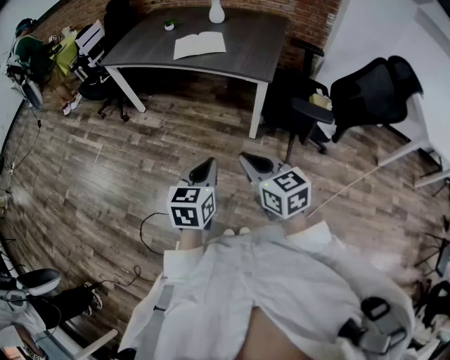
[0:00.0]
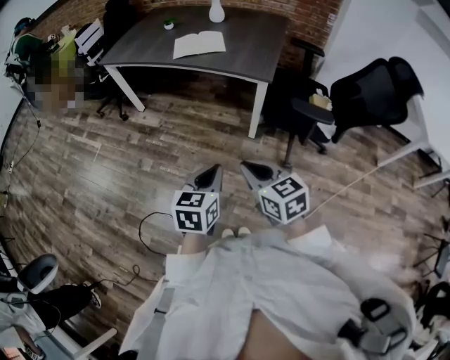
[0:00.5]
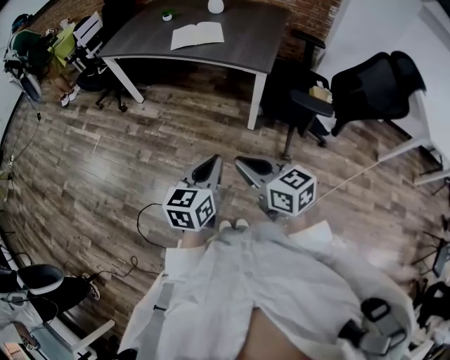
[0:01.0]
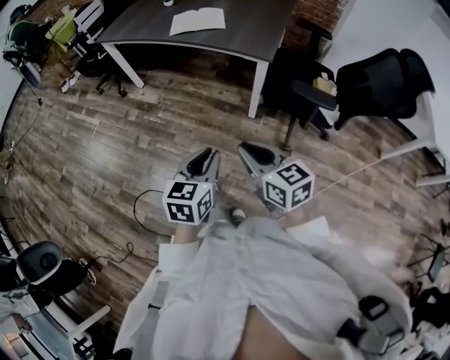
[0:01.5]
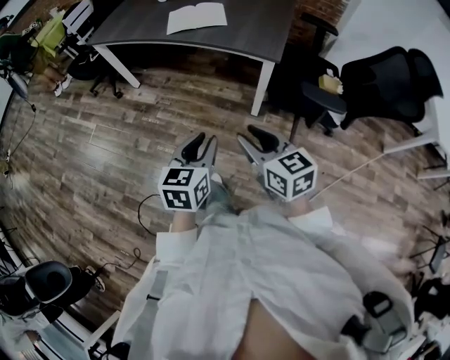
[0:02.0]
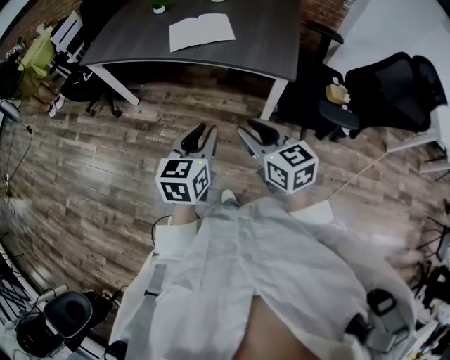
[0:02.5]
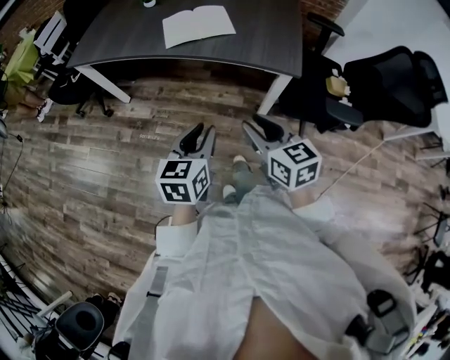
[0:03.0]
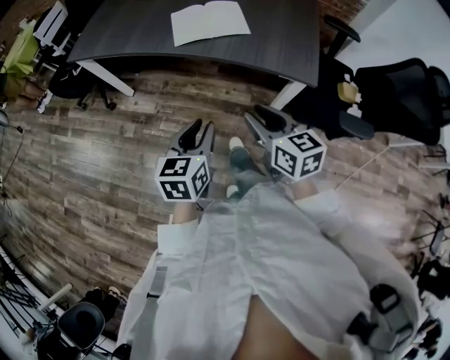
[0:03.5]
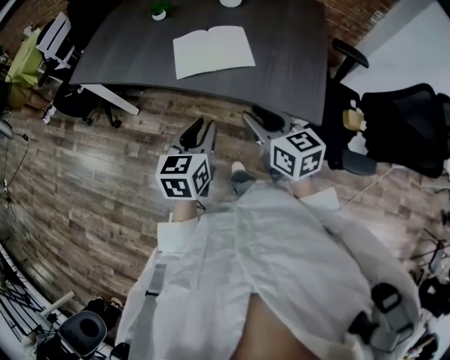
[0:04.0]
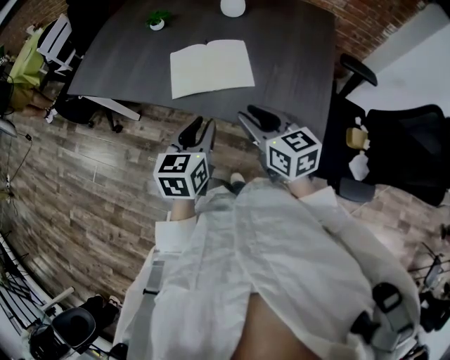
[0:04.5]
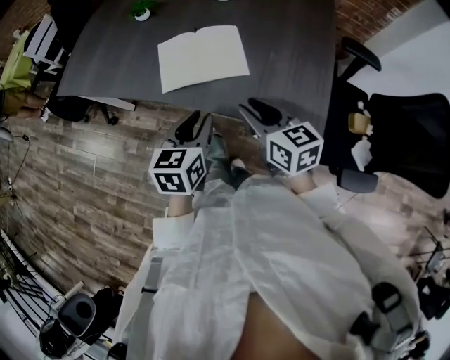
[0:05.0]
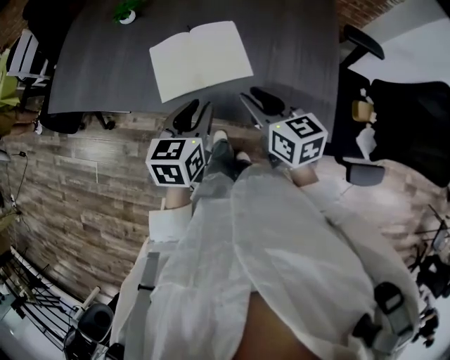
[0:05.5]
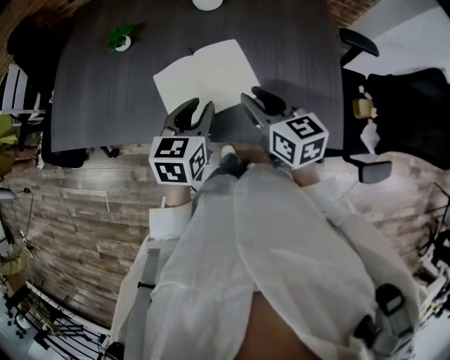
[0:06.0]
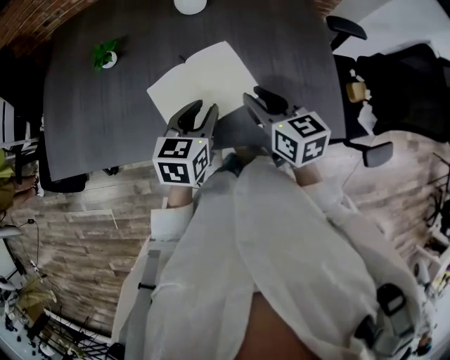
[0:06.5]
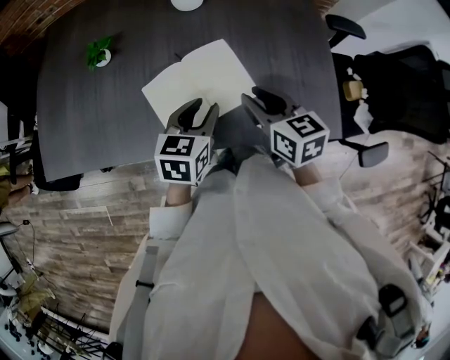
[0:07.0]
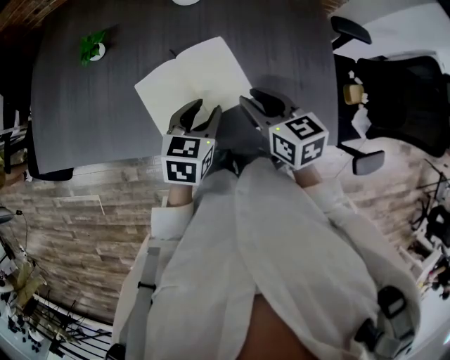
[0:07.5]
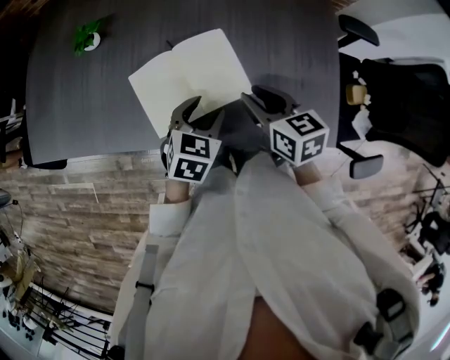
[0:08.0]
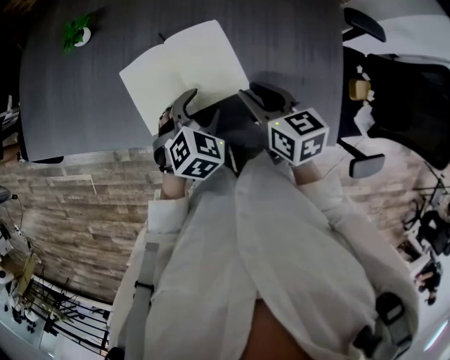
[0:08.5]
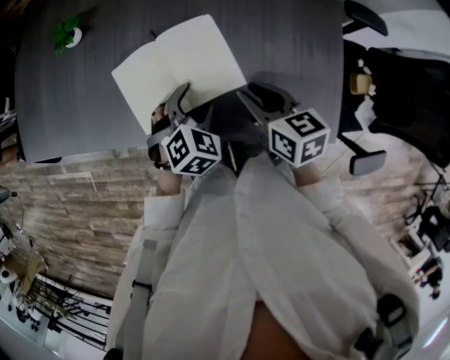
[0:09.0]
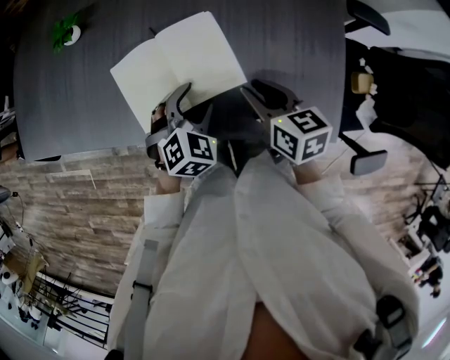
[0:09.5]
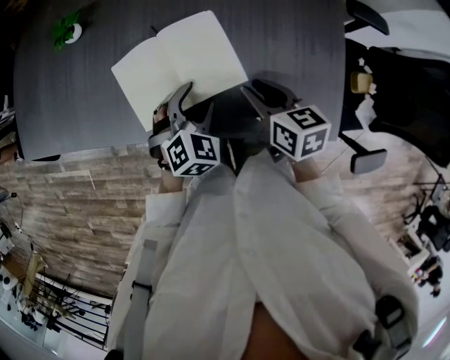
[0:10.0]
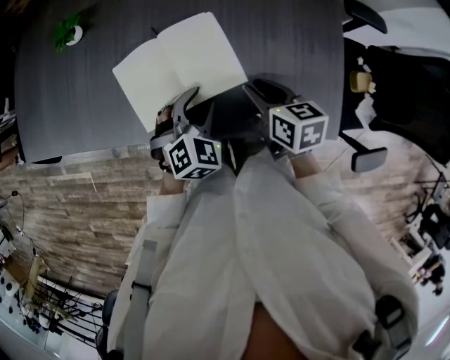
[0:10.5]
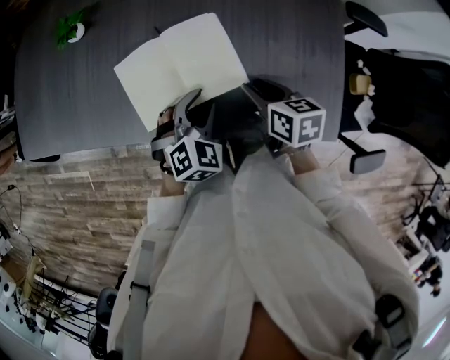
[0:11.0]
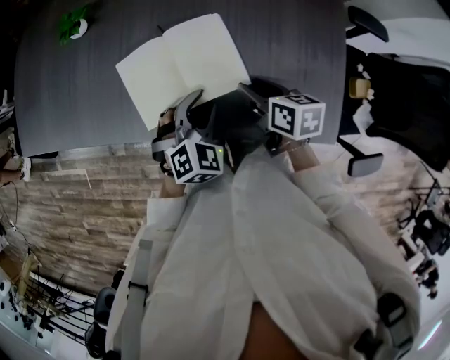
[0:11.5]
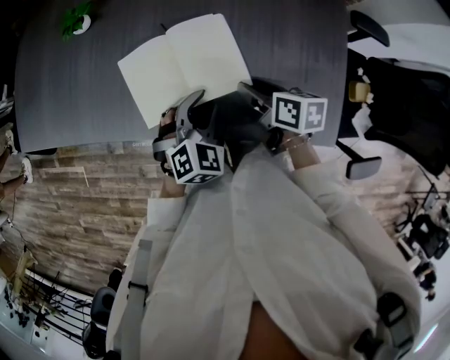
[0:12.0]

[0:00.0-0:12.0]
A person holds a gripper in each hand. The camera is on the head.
0:00.0 to 0:02.0: Both grippers travel together forward, roughly 10 cm. The right gripper opens.
0:02.0 to 0:04.0: Both grippers move forward, roughly 40 cm.
0:04.0 to 0:06.0: The two grippers go some 25 cm forward.
0:06.0 to 0:08.0: The right gripper travels downward by approximately 5 cm. The left gripper is displaced downward and to the right by about 10 cm, changes its angle by approximately 20 degrees, and opens up.
0:08.0 to 0:10.0: The left gripper swivels some 30 degrees.
0:10.0 to 0:12.0: The left gripper closes its fingers.

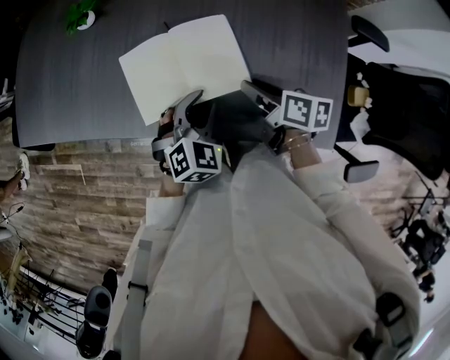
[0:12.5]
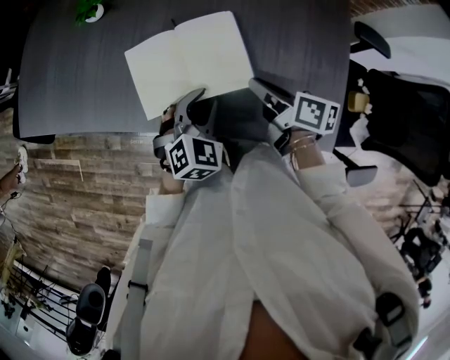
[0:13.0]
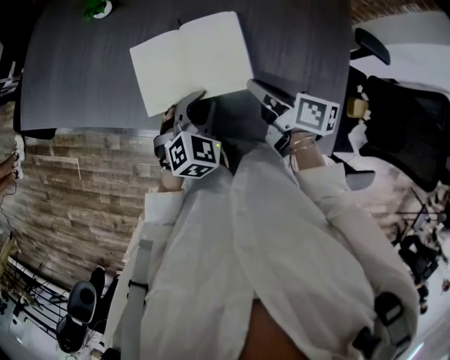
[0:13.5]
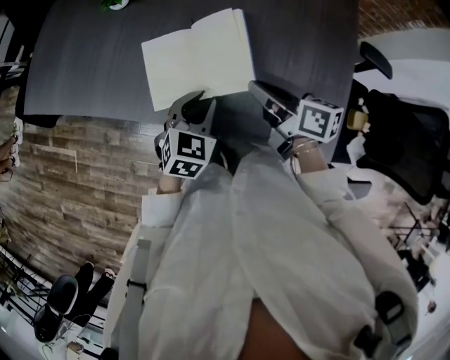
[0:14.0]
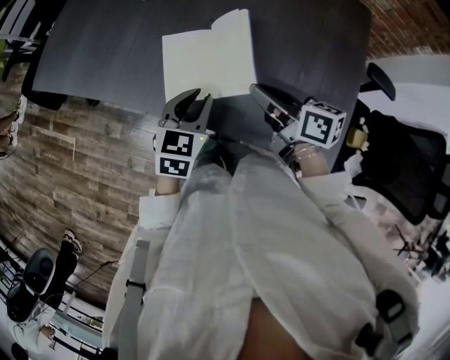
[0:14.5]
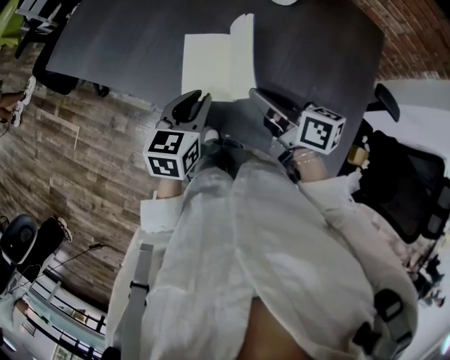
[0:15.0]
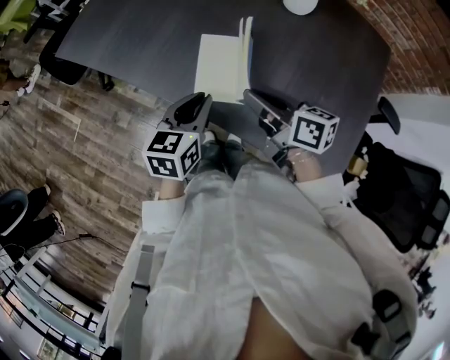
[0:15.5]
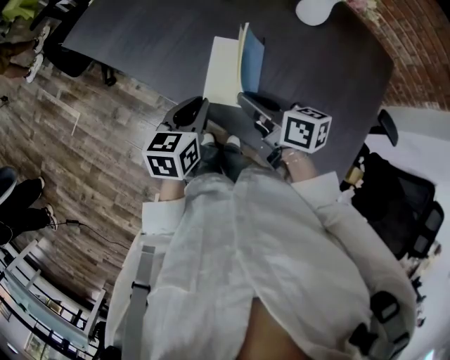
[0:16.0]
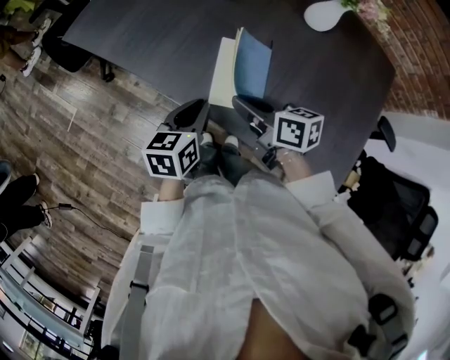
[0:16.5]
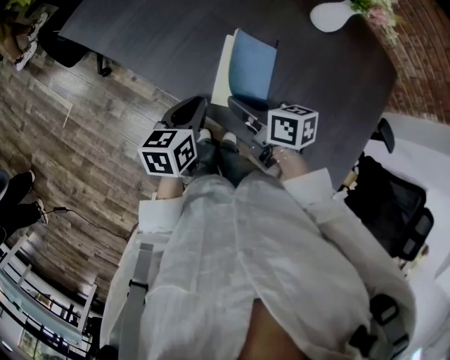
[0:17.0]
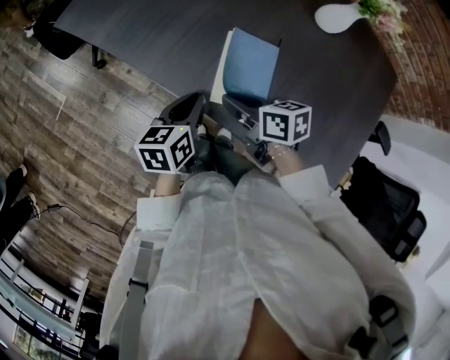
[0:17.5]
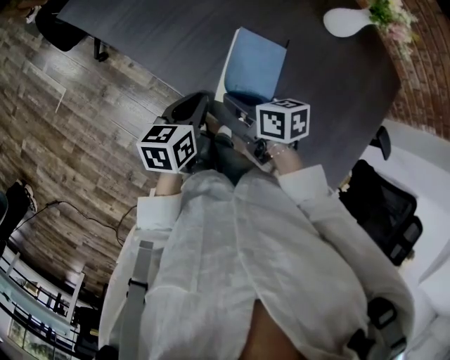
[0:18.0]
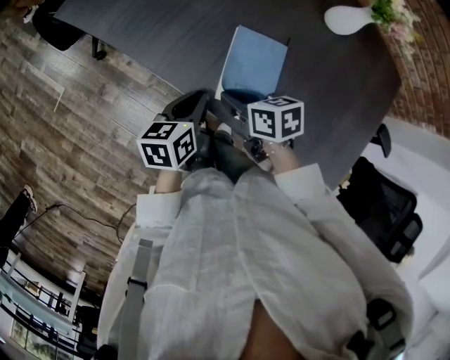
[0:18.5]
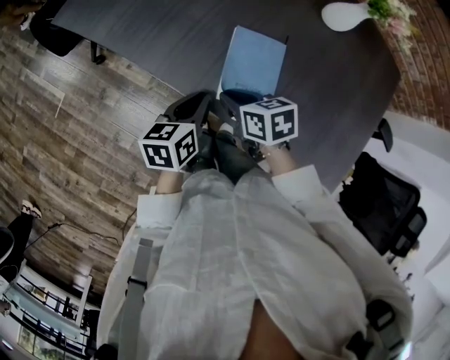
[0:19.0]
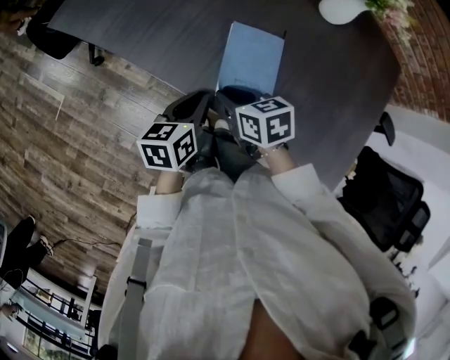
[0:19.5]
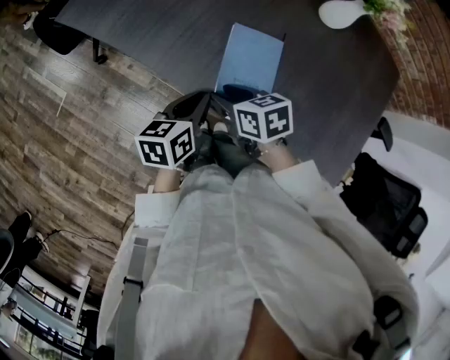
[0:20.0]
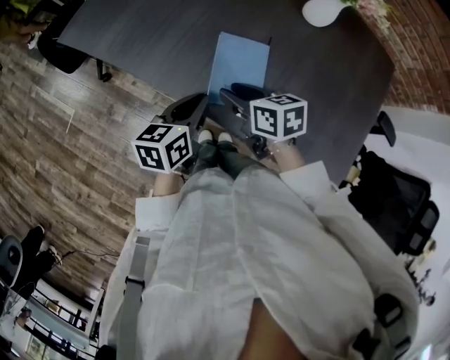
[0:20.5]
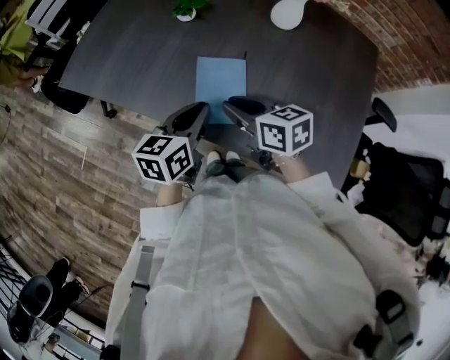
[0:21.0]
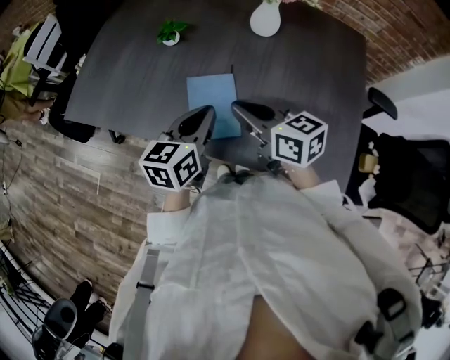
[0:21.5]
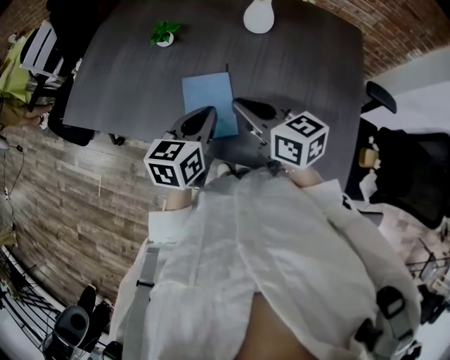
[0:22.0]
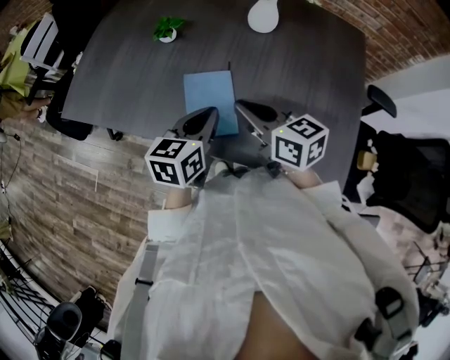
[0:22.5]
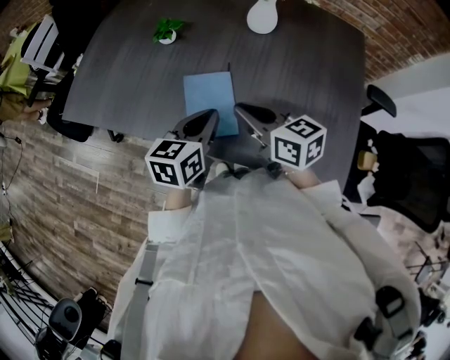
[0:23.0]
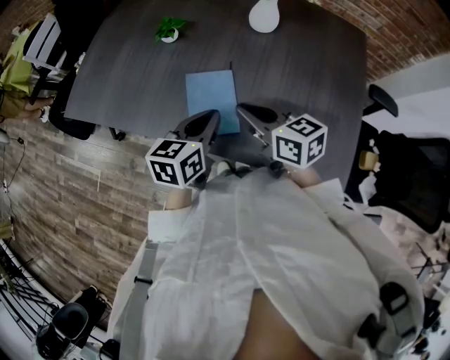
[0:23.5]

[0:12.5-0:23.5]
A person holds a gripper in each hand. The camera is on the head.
0:12.5 to 0:14.5: The right gripper travels upward and to the left by approximately 10 cm, swivels approximately 30 degrees, and closes up; the left gripper travels to the left by roughly 5 cm, and turns by roughly 40 degrees.
0:14.5 to 0:16.0: Both grippers move to the left, some 10 cm. The left gripper turns by about 30 degrees.
0:16.0 to 0:18.0: The left gripper travels downward by roughly 5 cm, while the right gripper shifts some 10 cm downward and to the left.
0:18.0 to 0:20.0: The right gripper opens its fingers.
0:20.0 to 0:21.5: Both grippers move upward and to the right, approximately 20 cm. The right gripper angles its fingers upward, by approximately 30 degrees, and closes its fingers. The left gripper turns by approximately 30 degrees.
0:21.5 to 0:23.5: There are only small adjustments of the grippers.

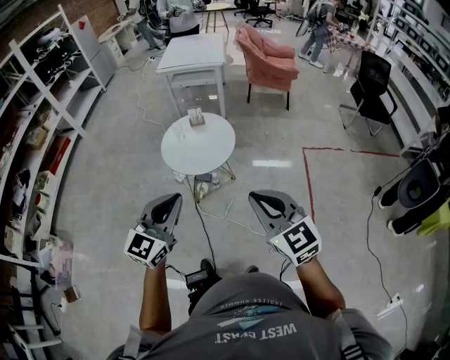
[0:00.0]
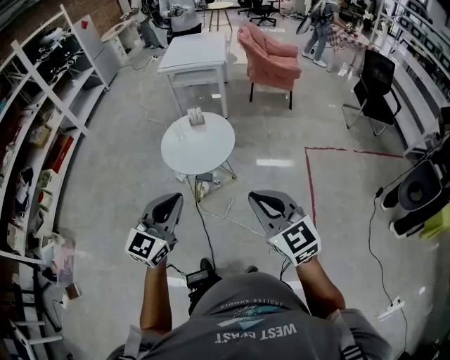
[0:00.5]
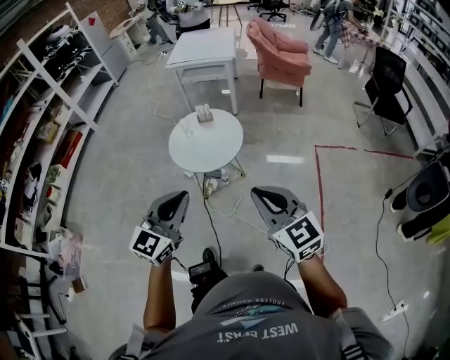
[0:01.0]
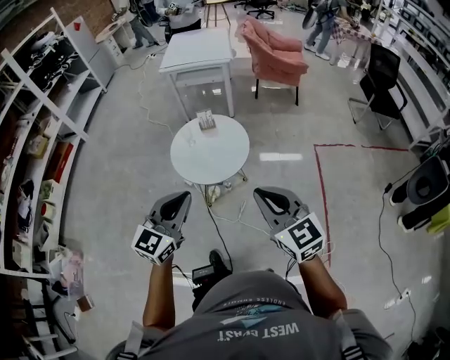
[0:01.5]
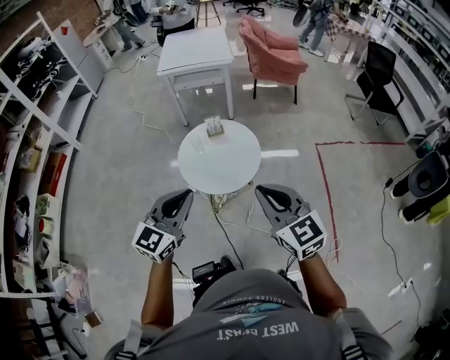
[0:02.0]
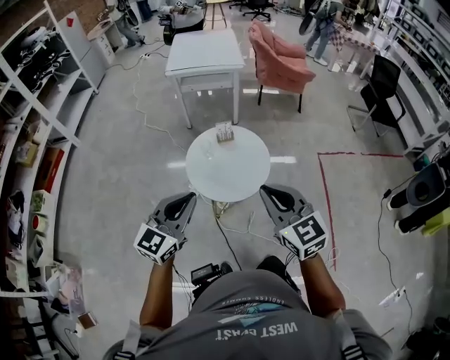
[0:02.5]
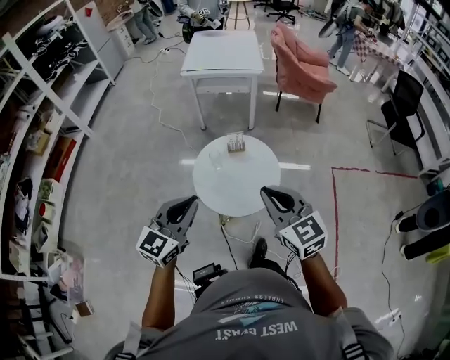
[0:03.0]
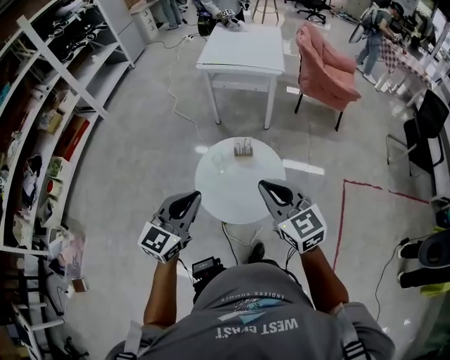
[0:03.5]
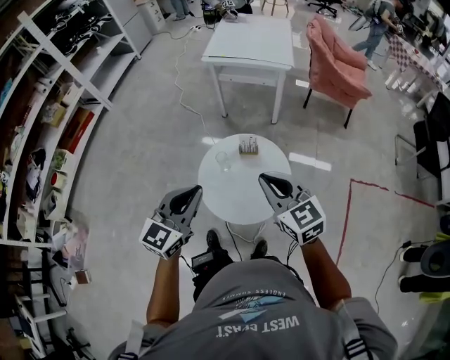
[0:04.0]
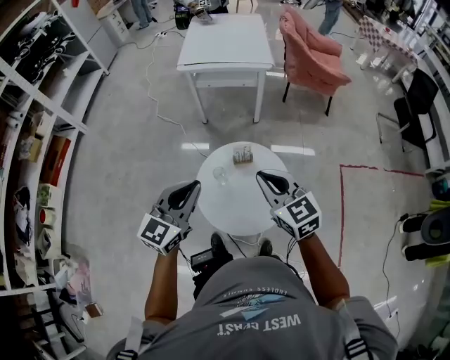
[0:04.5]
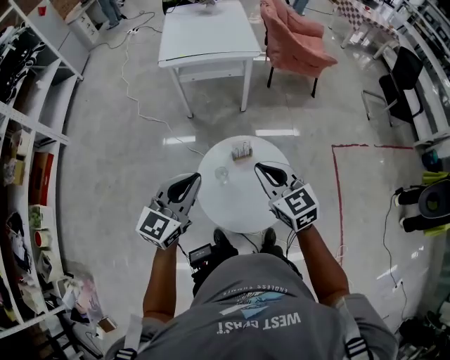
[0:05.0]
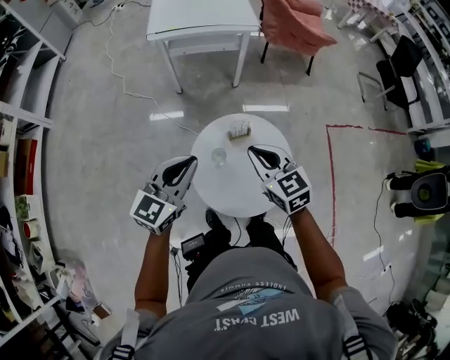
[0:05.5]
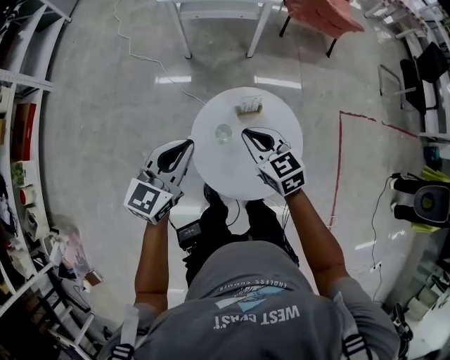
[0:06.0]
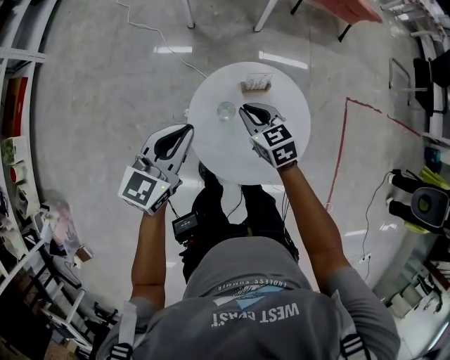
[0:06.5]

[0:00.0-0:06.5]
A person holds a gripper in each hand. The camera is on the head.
0:00.0 to 0:02.0: Both grippers move forward and to the left, some 20 cm.
0:02.0 to 0:04.5: Both grippers move forward, roughly 25 cm.
0:04.5 to 0:06.5: The left gripper heads downward, covering roughly 10 cm, while the right gripper shifts about 20 cm downward, and turns by approximately 20 degrees.
